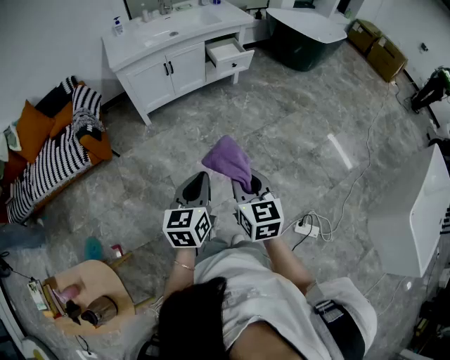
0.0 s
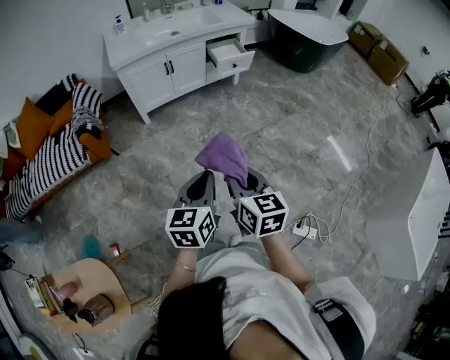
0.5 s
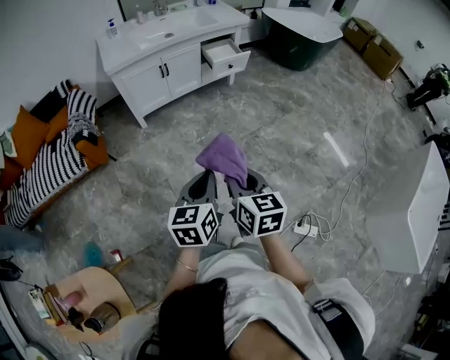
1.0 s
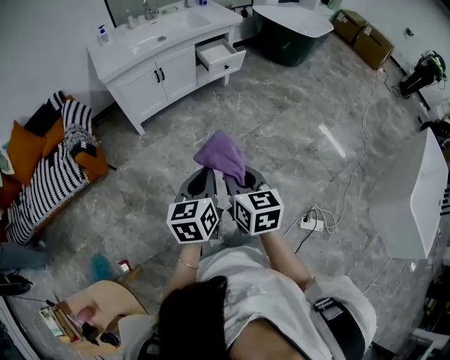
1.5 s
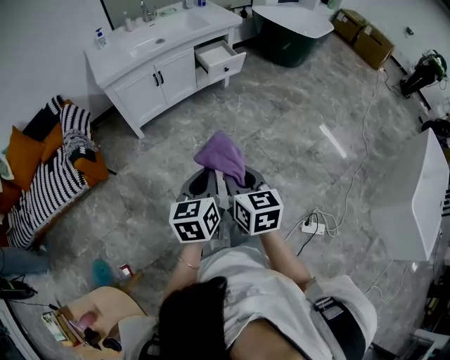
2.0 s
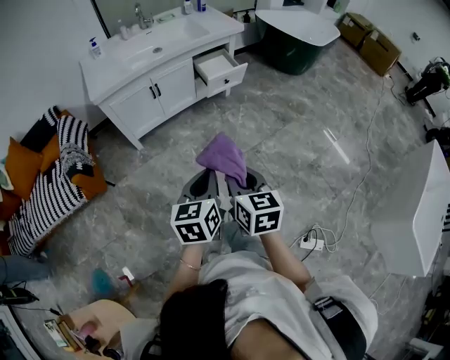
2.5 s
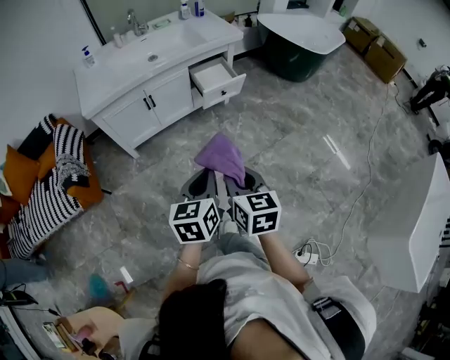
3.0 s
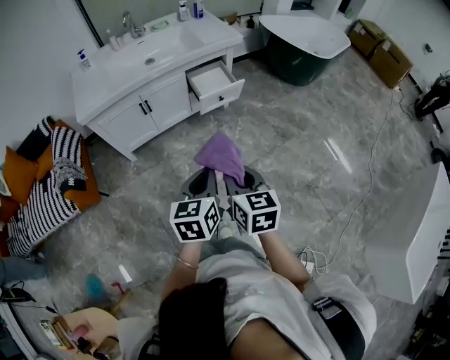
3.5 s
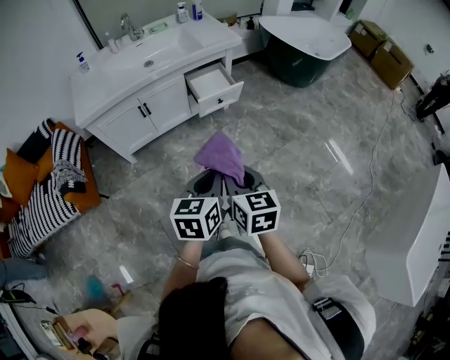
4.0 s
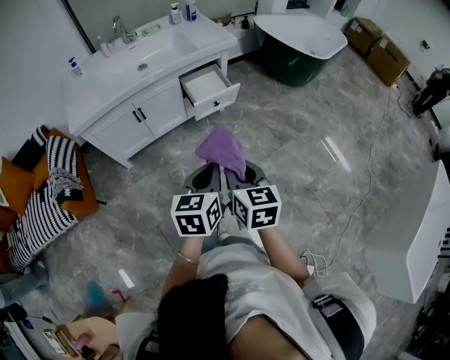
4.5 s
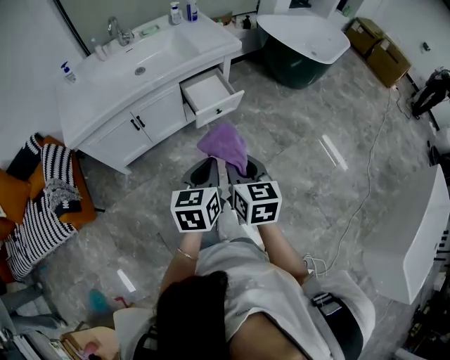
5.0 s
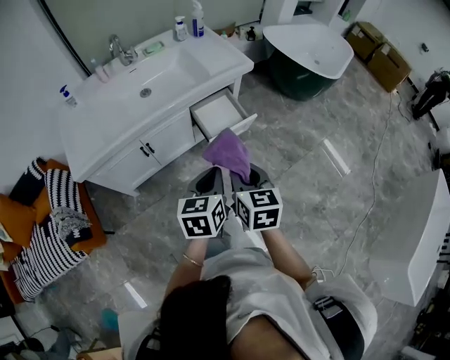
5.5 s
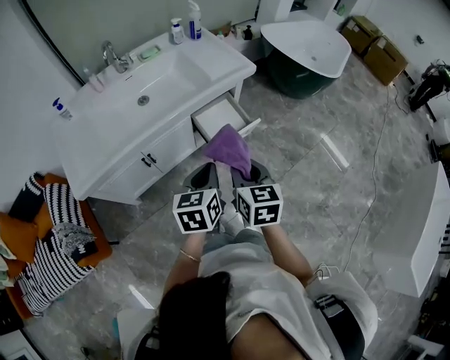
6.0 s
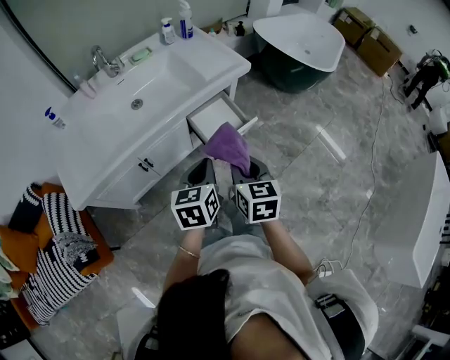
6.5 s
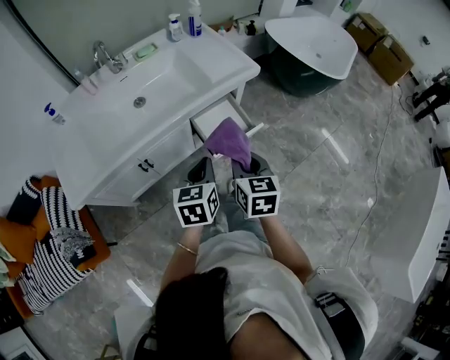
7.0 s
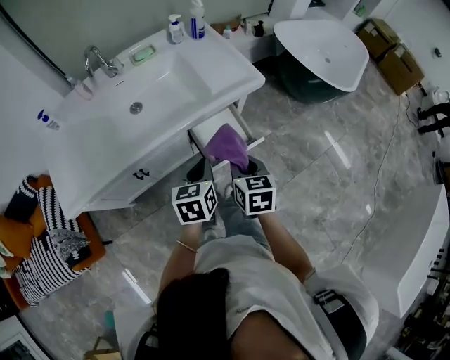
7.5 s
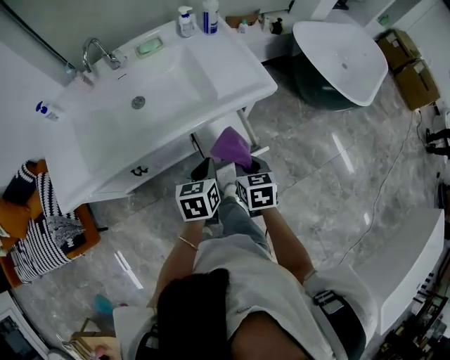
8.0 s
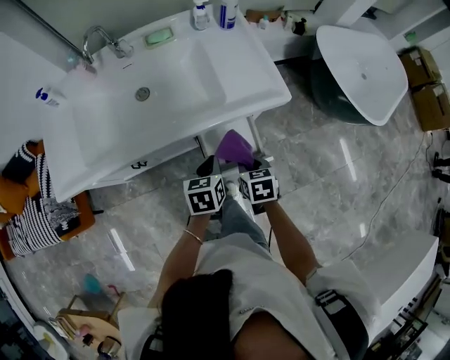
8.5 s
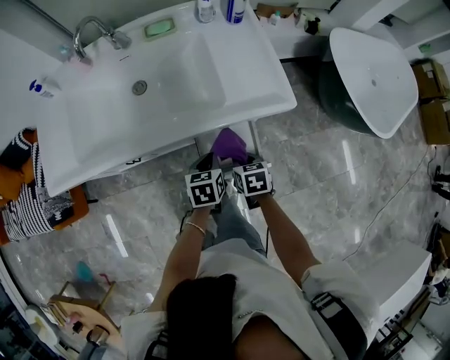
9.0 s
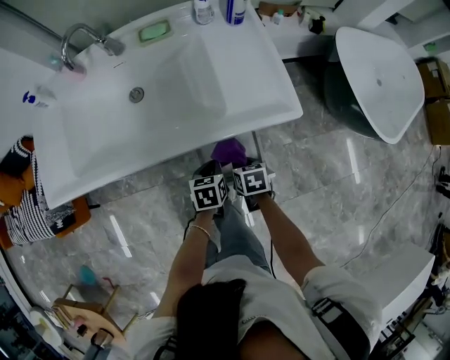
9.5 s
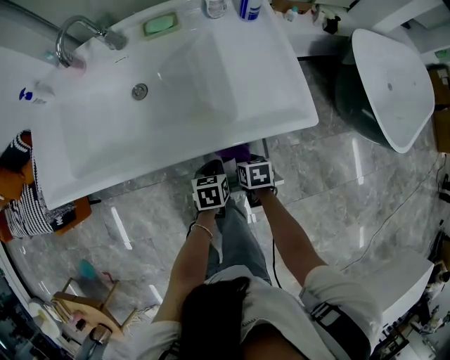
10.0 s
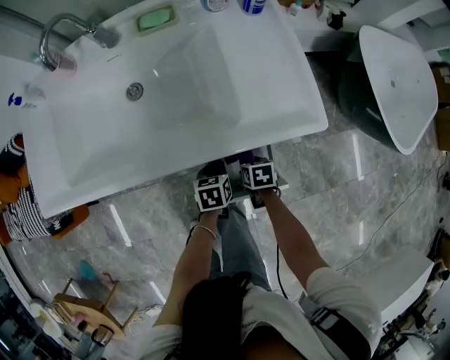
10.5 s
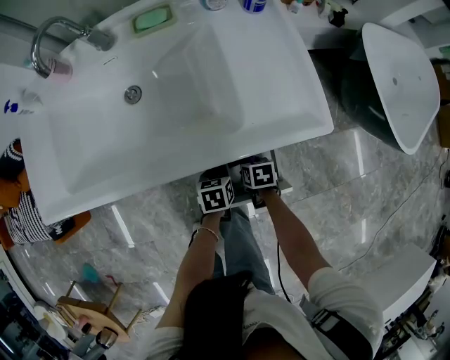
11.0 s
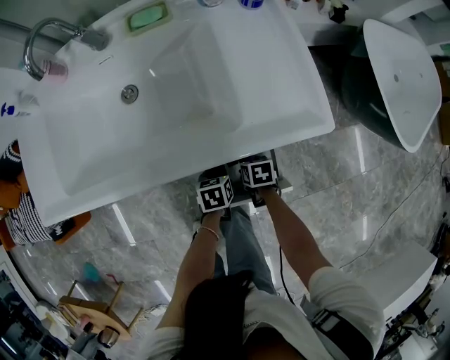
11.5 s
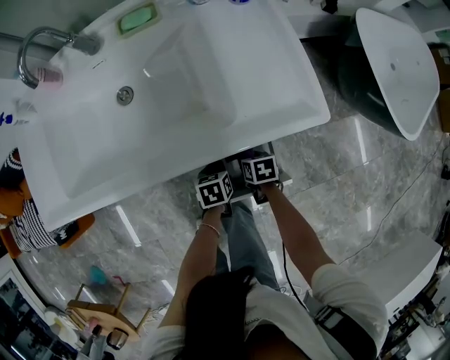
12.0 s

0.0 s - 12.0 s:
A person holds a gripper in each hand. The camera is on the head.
0.0 s - 2.0 s: The left gripper shifts approximately 10 cm forward; the right gripper moves forward and to the left, approximately 10 cm.
2.0 s - 4.0 s: Both grippers move forward and to the right, approximately 30 cm.
4.0 s - 6.0 s: The right gripper goes roughly 30 cm forward. Meanwhile the left gripper is displaced forward and to the left by approximately 35 cm.
6.0 s - 8.0 s: Both grippers travel together forward and downward, some 25 cm. The right gripper turns by about 20 degrees.
8.0 s - 10.0 s: Both grippers move downward and forward, approximately 25 cm. The left gripper turns by some 20 degrees, while the right gripper changes its angle by some 30 degrees.
10.0 s - 12.0 s: The grippers both shift downward by about 5 cm.

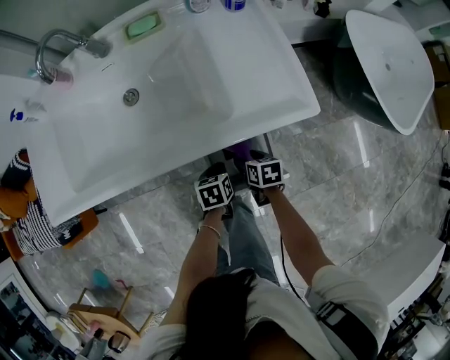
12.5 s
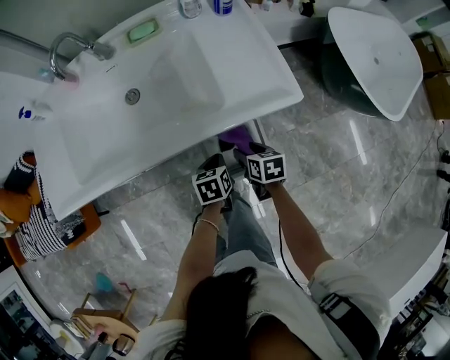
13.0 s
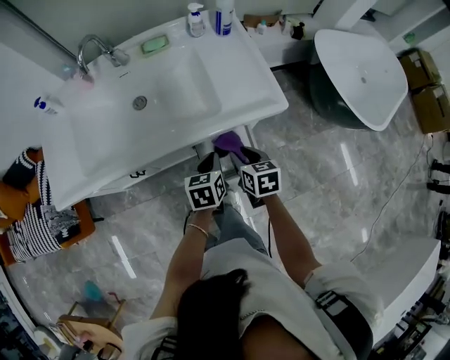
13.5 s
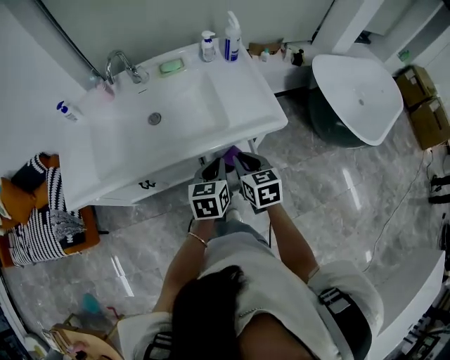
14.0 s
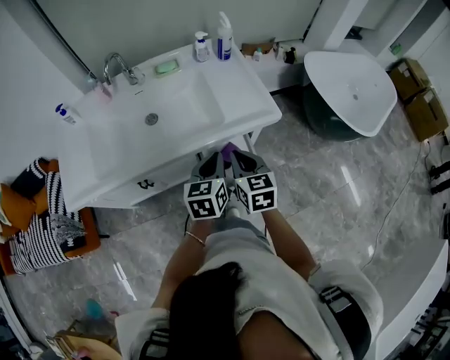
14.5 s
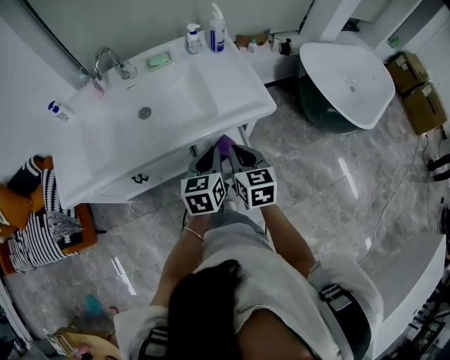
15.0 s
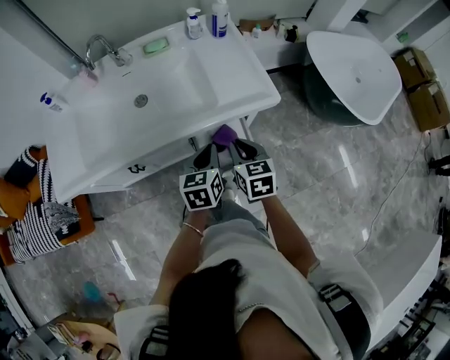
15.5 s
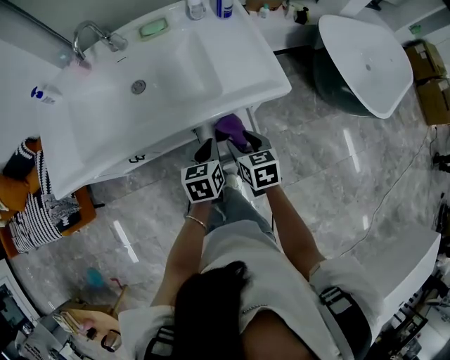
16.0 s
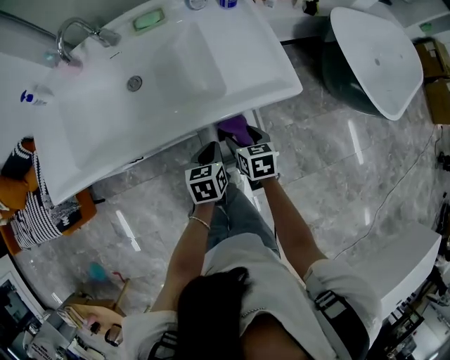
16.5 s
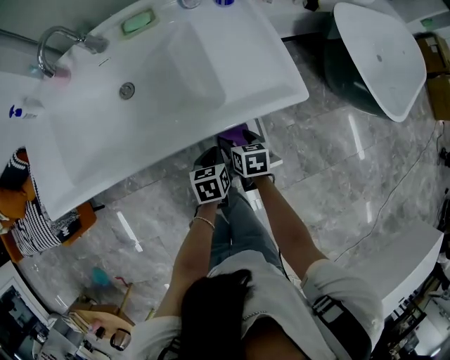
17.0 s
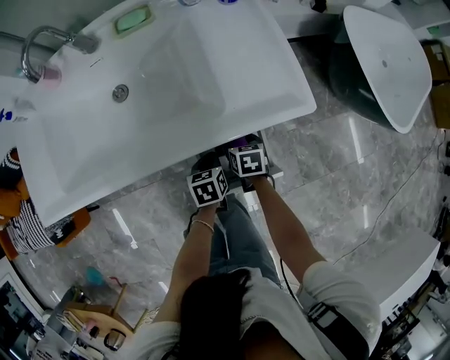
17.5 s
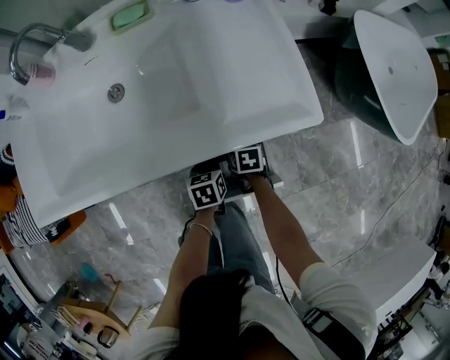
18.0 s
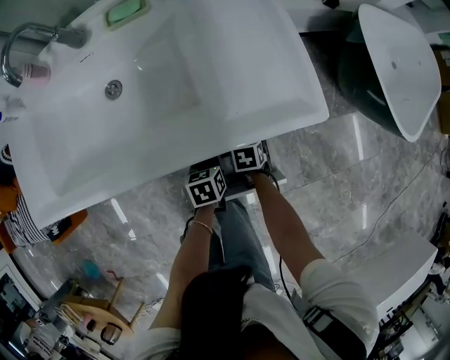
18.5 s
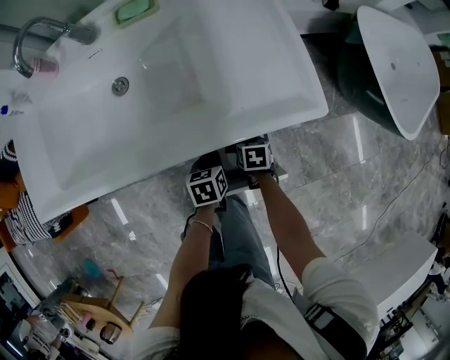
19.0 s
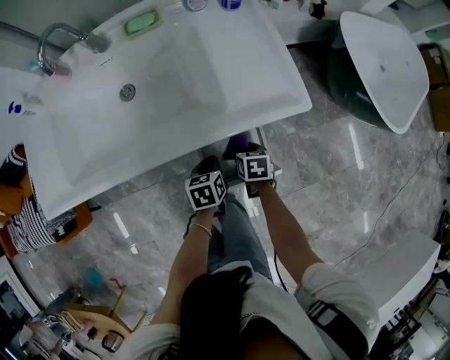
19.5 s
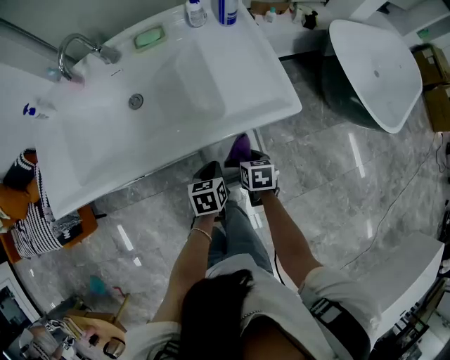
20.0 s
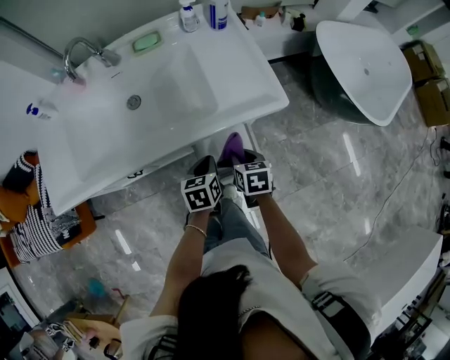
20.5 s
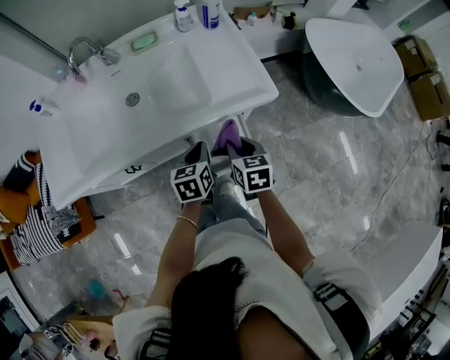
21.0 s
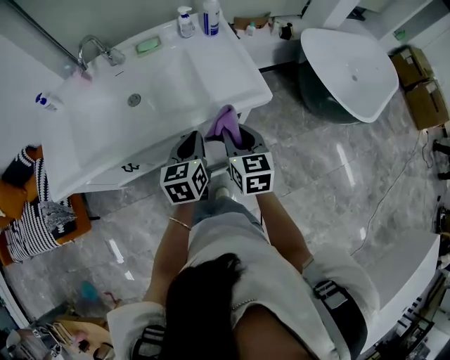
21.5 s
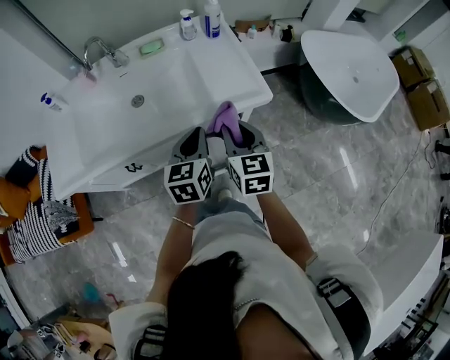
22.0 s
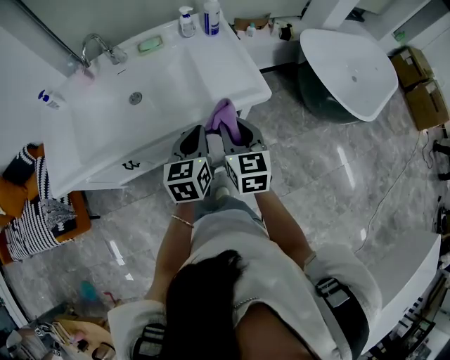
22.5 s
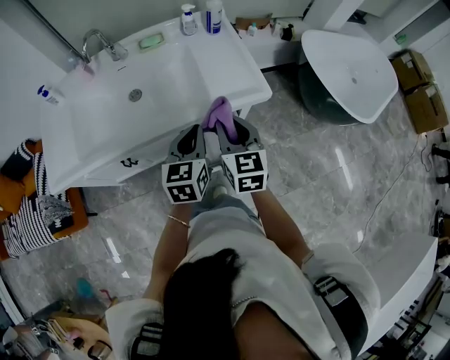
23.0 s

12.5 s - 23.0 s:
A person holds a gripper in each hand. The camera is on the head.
12.5 s - 14.5 s: Both grippers move upward, some 30 cm. The right gripper rotates some 40 degrees, and closes. Meanwhile the left gripper points its fingers approximately 40 degrees further upward.
14.5 s - 16.5 s: The two grippers go approximately 20 cm downward. The right gripper changes its angle by approximately 20 degrees, and opens, while the left gripper rotates approximately 20 degrees.
16.5 s - 19.0 s: The two grippers go approximately 15 cm downward. The right gripper closes up.
19.0 s - 21.0 s: Both grippers travel together upward, roughly 25 cm. The right gripper swivels approximately 20 degrees.
21.0 s - 23.0 s: The two grippers go approximately 15 cm upward. The right gripper changes its angle by roughly 30 degrees. The left gripper changes its angle by approximately 20 degrees.

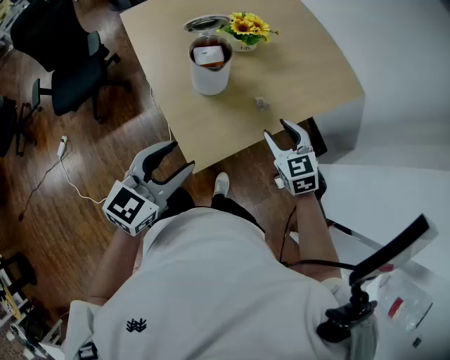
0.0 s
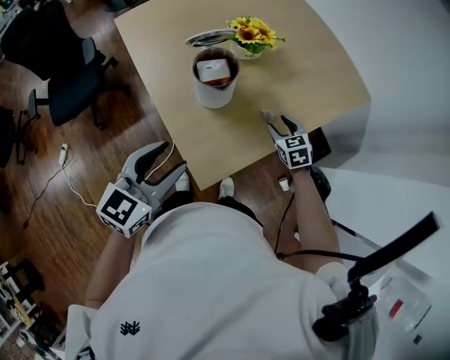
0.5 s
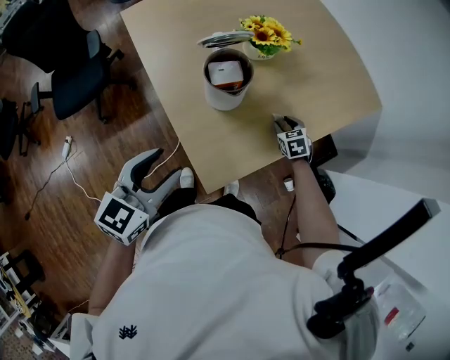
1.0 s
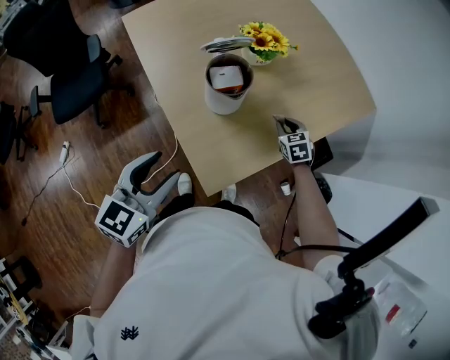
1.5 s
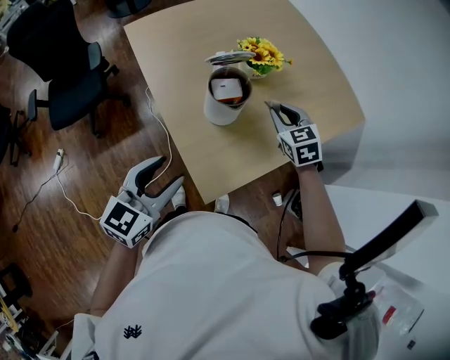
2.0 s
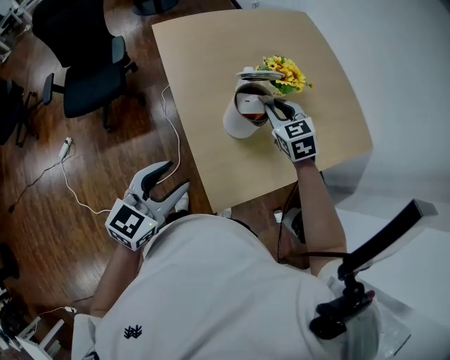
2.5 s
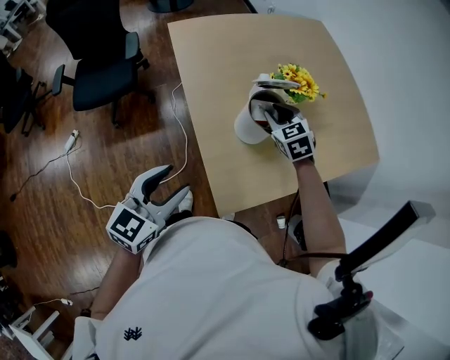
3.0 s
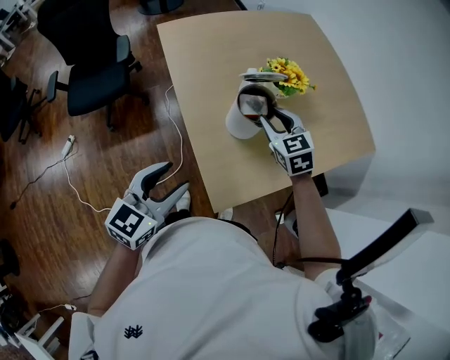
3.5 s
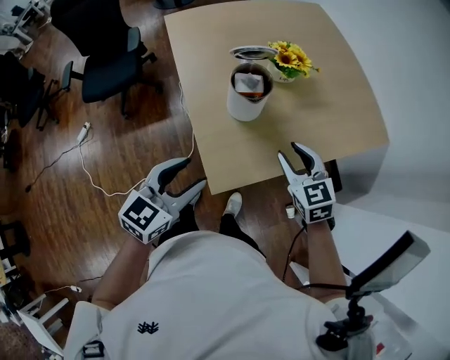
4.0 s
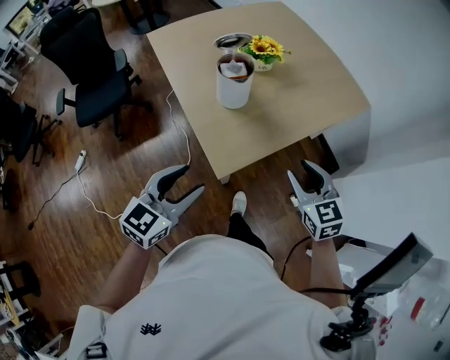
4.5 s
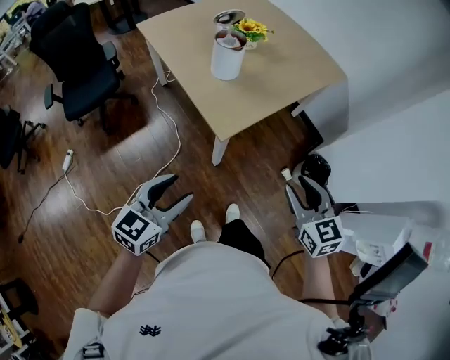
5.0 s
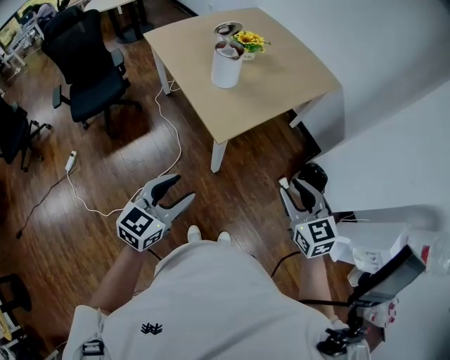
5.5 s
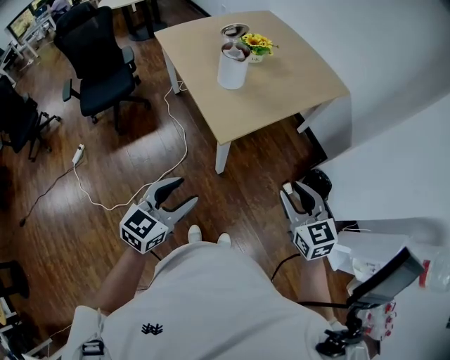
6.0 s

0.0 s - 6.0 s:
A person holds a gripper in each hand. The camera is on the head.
0.0 s - 2.0 s: The right gripper is displaced forward and to the left by some 20 cm, goes downward and returns, about 20 cm each way, and closes its fingers; the left gripper shifts approximately 10 cm to the left and forward.
2.0 s - 4.0 s: The right gripper is displaced backward by some 15 cm. The left gripper shifts roughly 5 cm to the right.
4.0 s - 6.0 s: Both grippers travel together backward, approximately 35 cm.
